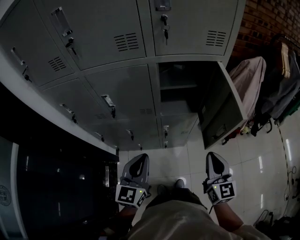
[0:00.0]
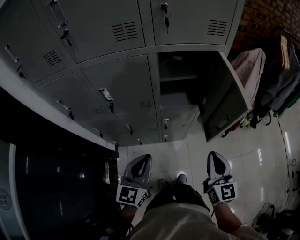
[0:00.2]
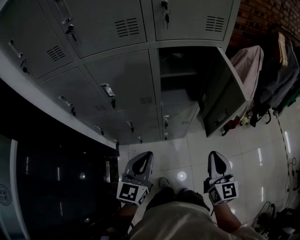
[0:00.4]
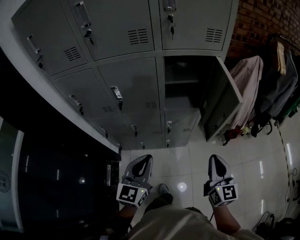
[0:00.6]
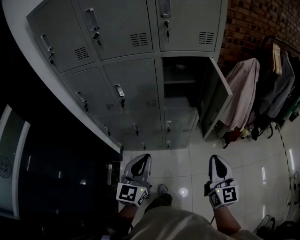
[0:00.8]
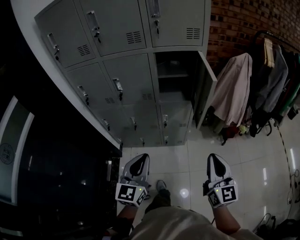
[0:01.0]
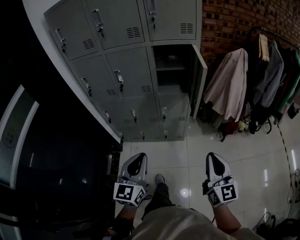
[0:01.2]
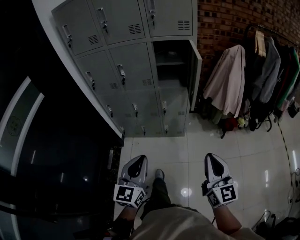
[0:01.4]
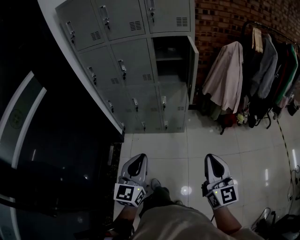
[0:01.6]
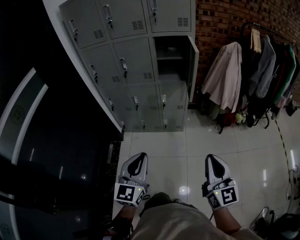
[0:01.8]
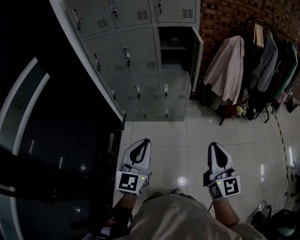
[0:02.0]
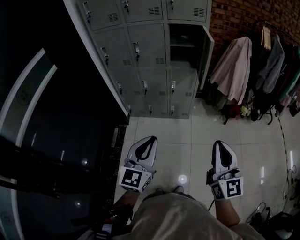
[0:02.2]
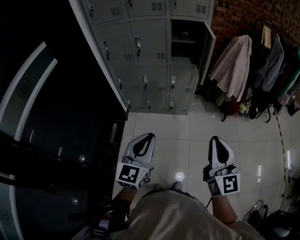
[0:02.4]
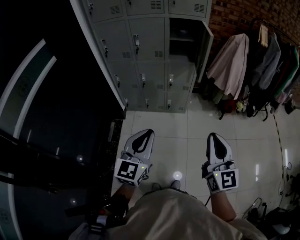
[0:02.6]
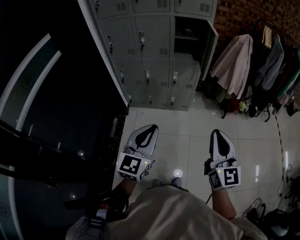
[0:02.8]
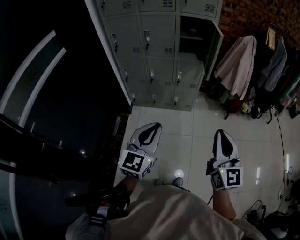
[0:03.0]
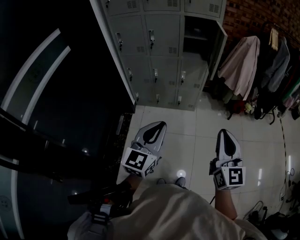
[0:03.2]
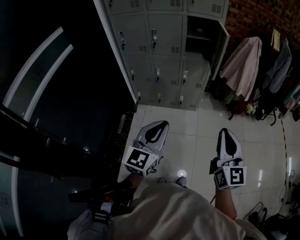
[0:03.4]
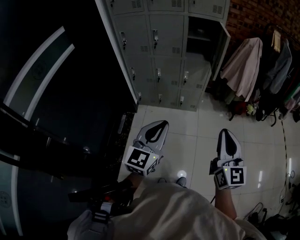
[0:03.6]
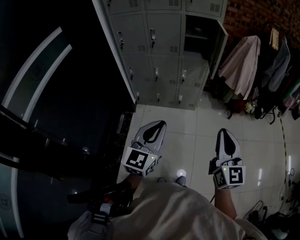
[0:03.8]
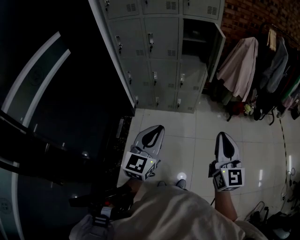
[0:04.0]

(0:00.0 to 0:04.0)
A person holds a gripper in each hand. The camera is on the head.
0:00.0 - 0:01.4: Both grippers are carried backward, roughly 40 cm.
0:01.4 - 0:02.6: The left gripper travels backward by approximately 10 cm, while the right gripper travels backward, to the left and upward by roughly 15 cm.
0:02.6 - 0:04.0: There are only small adjustments of the grippers.

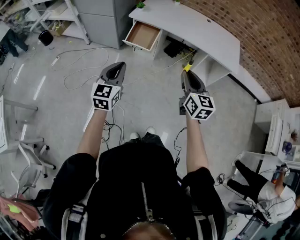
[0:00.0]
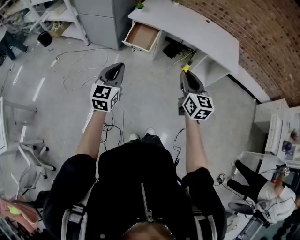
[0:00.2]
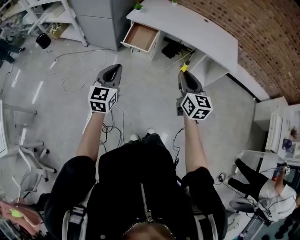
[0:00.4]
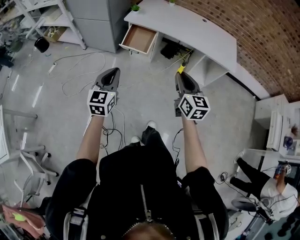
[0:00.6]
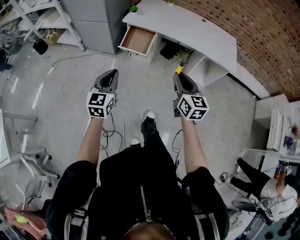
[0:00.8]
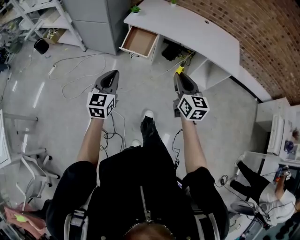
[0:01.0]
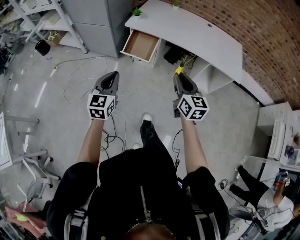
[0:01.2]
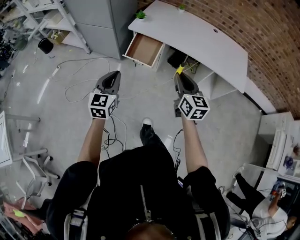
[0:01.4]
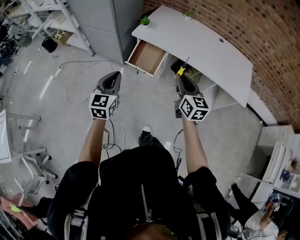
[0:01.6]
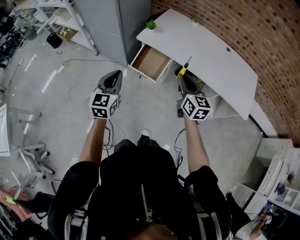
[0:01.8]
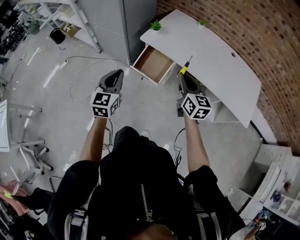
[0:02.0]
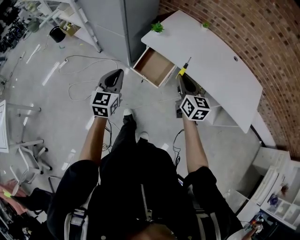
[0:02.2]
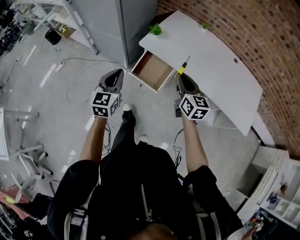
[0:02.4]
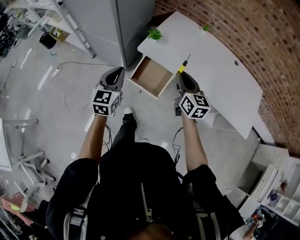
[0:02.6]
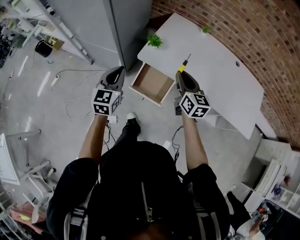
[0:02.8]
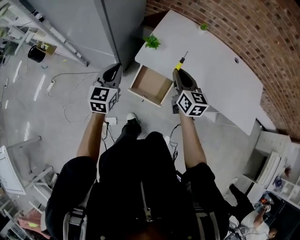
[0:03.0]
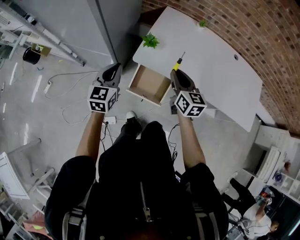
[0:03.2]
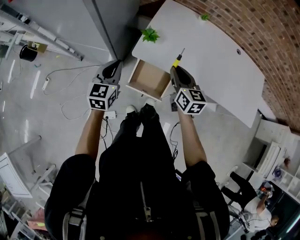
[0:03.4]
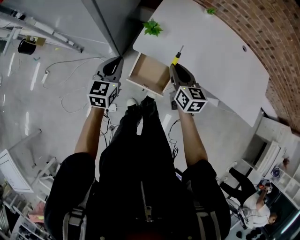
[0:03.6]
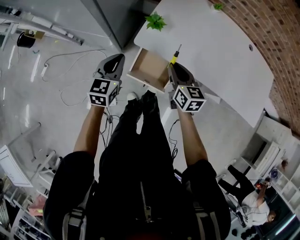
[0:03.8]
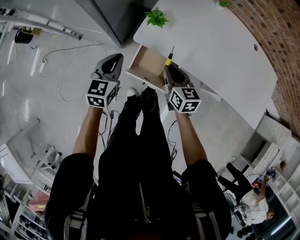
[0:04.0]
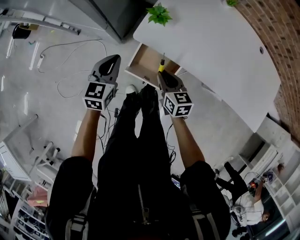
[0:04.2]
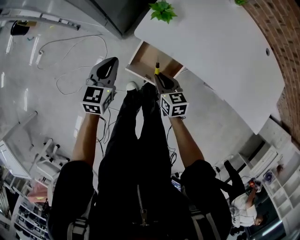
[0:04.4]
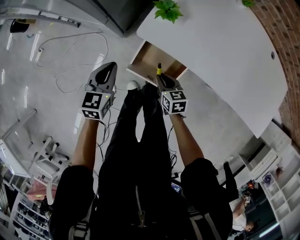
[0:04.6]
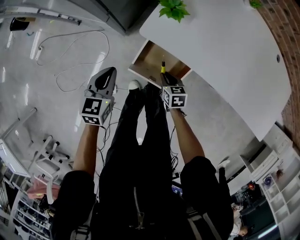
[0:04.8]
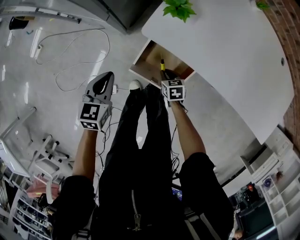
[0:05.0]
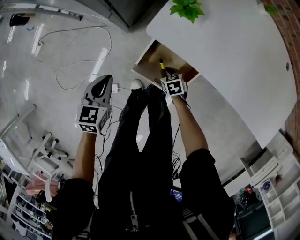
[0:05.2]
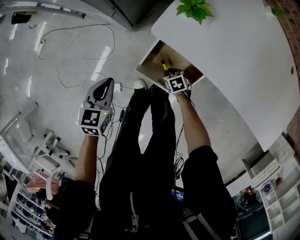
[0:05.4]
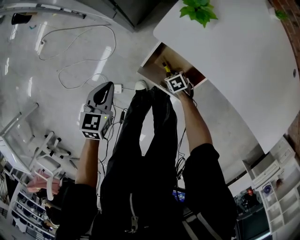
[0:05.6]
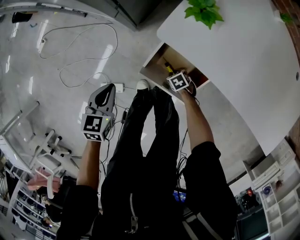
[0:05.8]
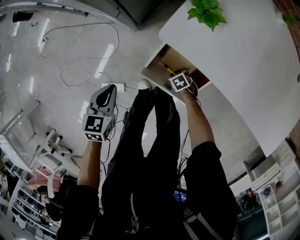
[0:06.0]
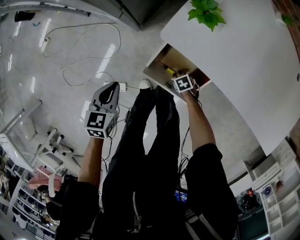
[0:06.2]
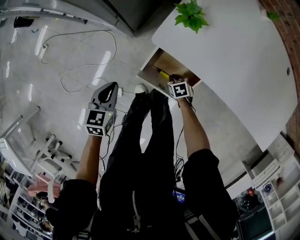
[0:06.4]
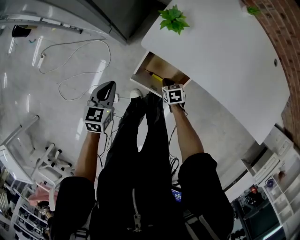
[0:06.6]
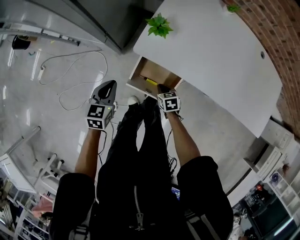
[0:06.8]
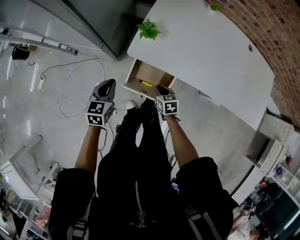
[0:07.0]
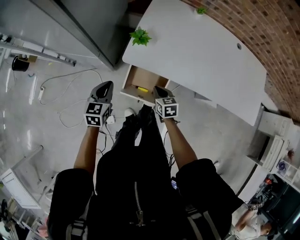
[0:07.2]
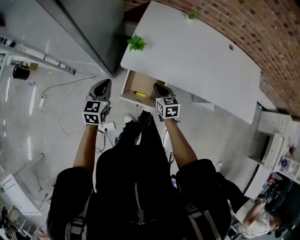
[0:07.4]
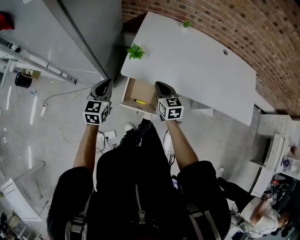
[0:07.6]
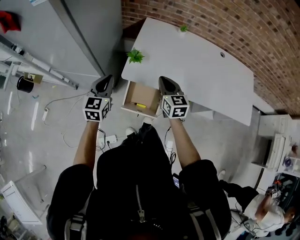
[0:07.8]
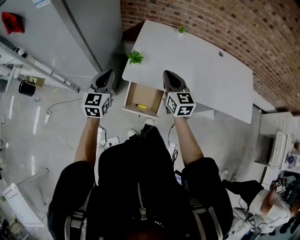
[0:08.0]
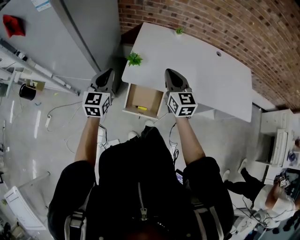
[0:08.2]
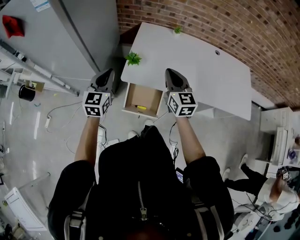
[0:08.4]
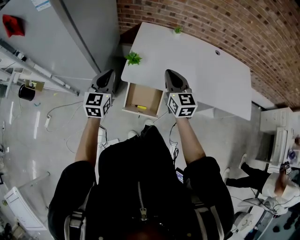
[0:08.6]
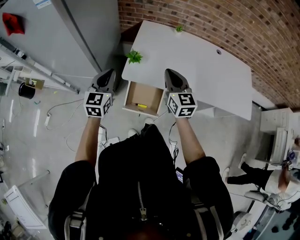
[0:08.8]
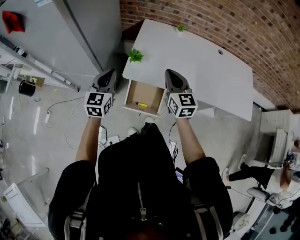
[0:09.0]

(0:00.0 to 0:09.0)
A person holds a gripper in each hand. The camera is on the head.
0:00.0 - 0:01.6: Both grippers move forward, approximately 25 cm.
0:01.6 - 0:03.0: Both grippers travel together forward, roughly 35 cm.
0:03.0 - 0:04.4: The grippers both shift downward by approximately 25 cm. The right gripper swivels approximately 30 degrees.
0:04.4 - 0:06.0: The left gripper travels downward by some 15 cm. The right gripper travels downward by roughly 35 cm, and tips its fingers downward by some 40 degrees.
0:06.0 - 0:07.6: The left gripper travels upward by approximately 25 cm, and turns by approximately 30 degrees. Meanwhile the right gripper shifts some 50 cm upward, points its fingers roughly 50 degrees further upward, and closes its fingers.
0:07.6 - 0:09.0: The left gripper shifts approximately 10 cm upward; the right gripper goes some 15 cm upward.

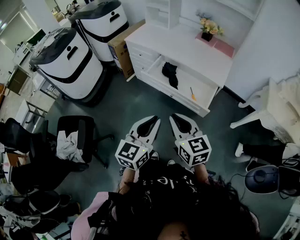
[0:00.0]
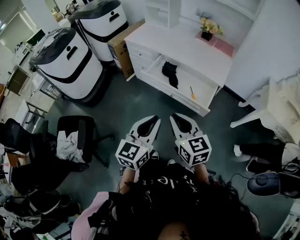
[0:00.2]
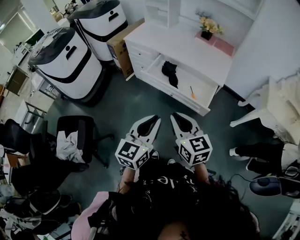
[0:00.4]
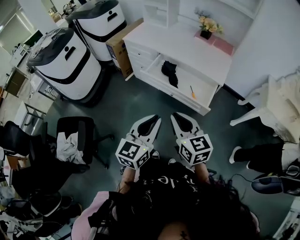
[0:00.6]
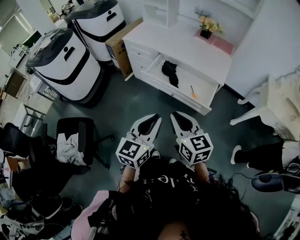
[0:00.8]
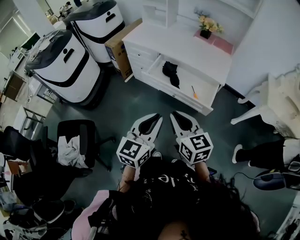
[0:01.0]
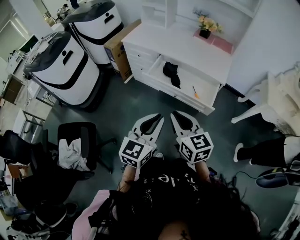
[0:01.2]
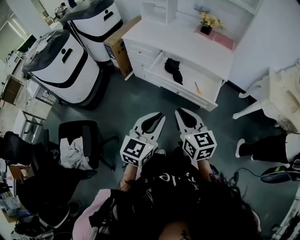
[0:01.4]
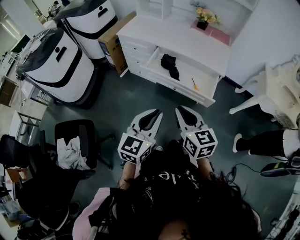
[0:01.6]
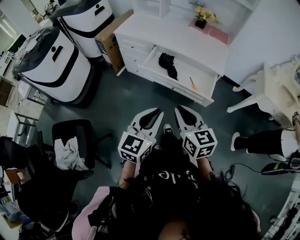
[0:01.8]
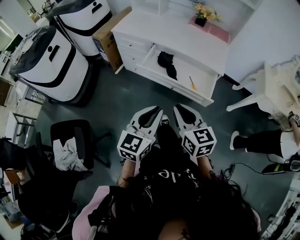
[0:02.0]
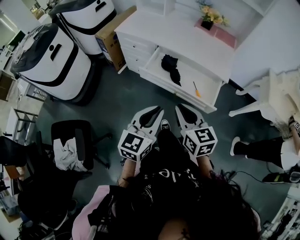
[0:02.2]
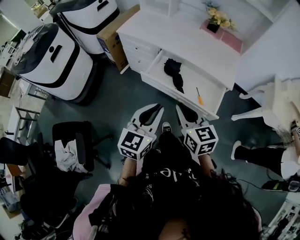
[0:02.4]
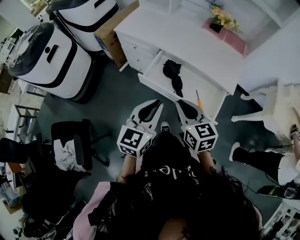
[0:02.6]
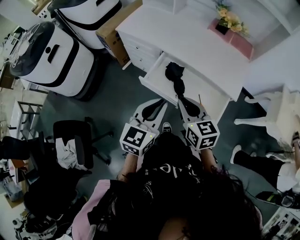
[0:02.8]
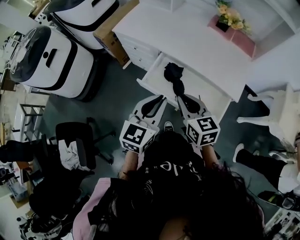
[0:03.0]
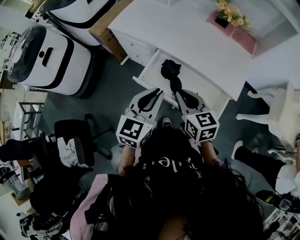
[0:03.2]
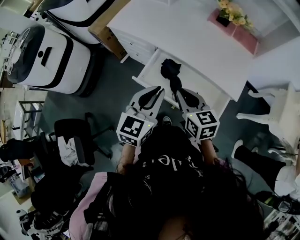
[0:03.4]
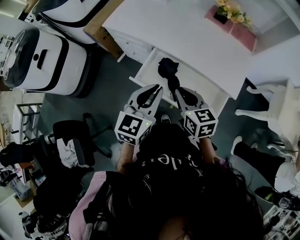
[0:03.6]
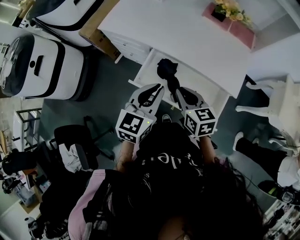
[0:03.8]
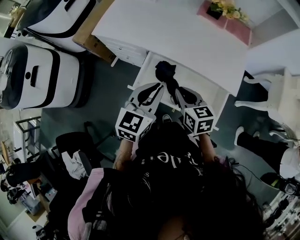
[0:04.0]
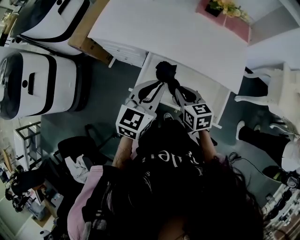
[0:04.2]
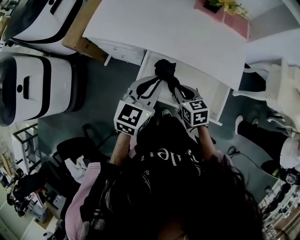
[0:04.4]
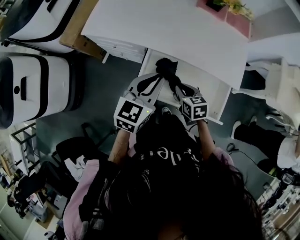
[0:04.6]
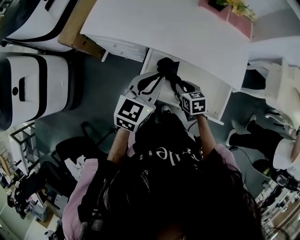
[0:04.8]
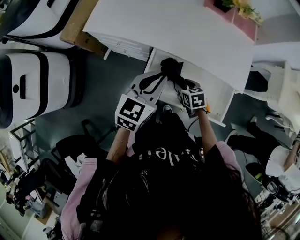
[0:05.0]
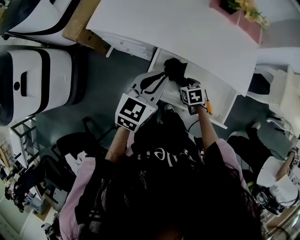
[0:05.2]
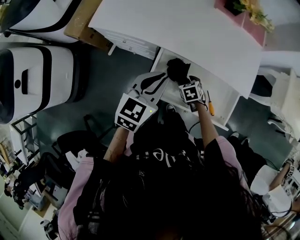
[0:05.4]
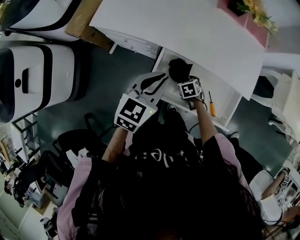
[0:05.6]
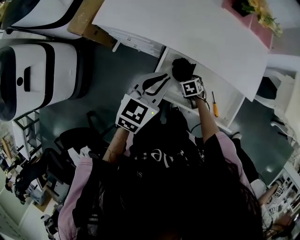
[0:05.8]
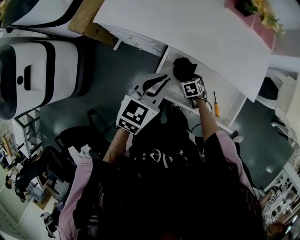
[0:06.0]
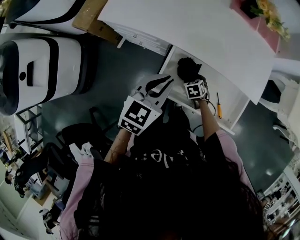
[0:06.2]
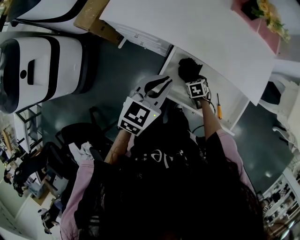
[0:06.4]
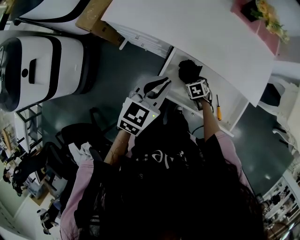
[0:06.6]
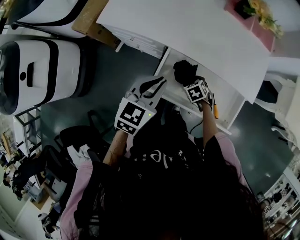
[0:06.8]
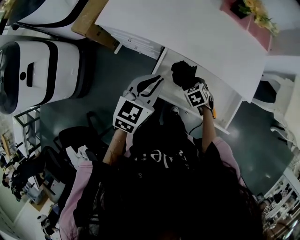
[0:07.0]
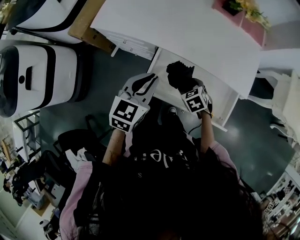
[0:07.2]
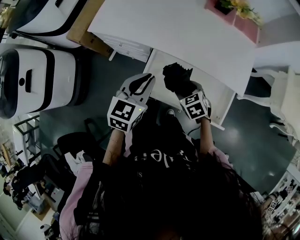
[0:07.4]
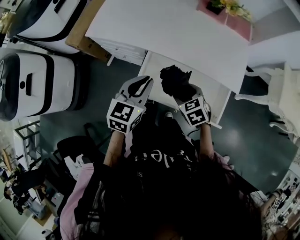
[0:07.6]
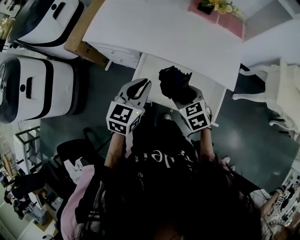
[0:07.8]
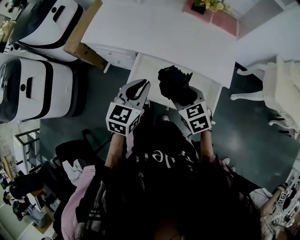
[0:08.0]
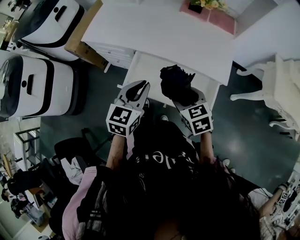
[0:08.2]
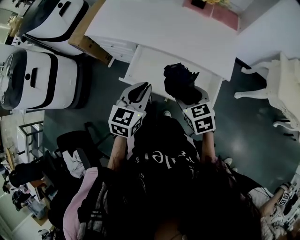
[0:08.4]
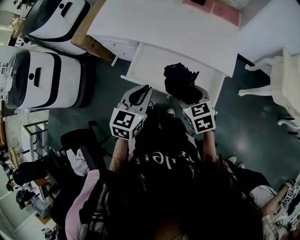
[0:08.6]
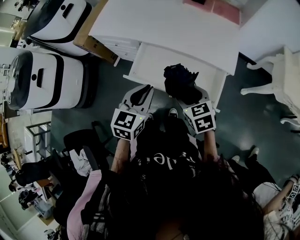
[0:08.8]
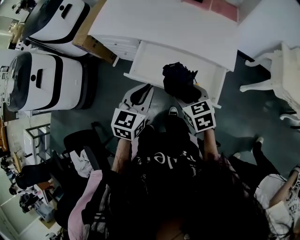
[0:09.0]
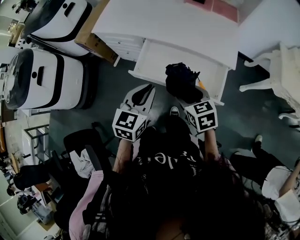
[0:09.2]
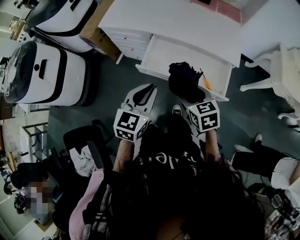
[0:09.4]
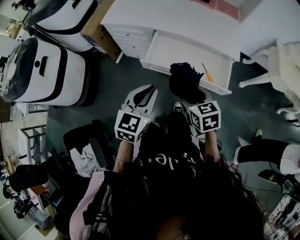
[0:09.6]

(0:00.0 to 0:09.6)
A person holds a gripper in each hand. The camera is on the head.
0:00.0 - 0:01.6: Both grippers move to the left, about 5 cm.
0:01.6 - 0:03.2: Both grippers move forward, about 35 cm.
0:03.2 - 0:04.8: The left gripper is displaced forward by approximately 15 cm, and swivels roughly 20 degrees, while the right gripper travels downward and forward by some 25 cm, and swivels some 30 degrees.
0:04.8 - 0:06.4: The left gripper ends up approximately 5 cm from where it was. The right gripper travels downward by some 15 cm, changes its angle by approximately 20 degrees, and opens its fingers.
0:06.4 - 0:08.0: The right gripper heads upward and backward, covering about 30 cm, and swivels some 20 degrees. Meanwhile the left gripper shifts approximately 15 cm to the right, backward and upward.
0:08.0 - 0:09.6: The two grippers go some 25 cm backward and to the left.

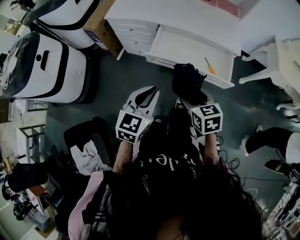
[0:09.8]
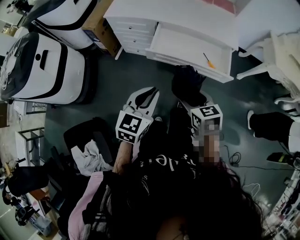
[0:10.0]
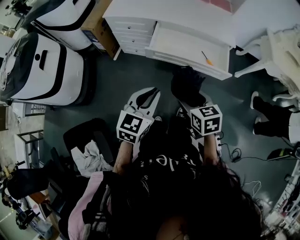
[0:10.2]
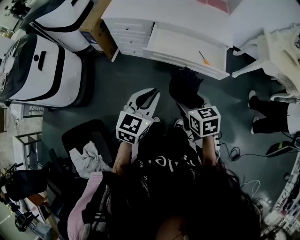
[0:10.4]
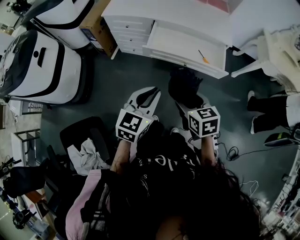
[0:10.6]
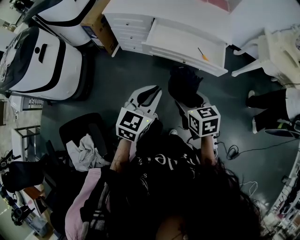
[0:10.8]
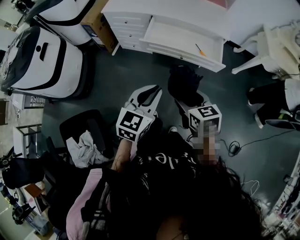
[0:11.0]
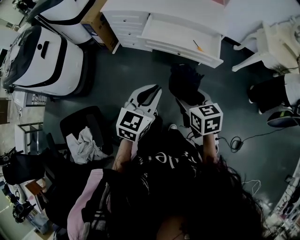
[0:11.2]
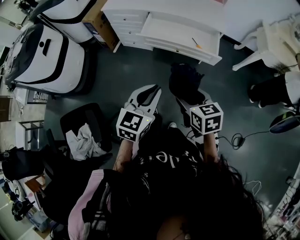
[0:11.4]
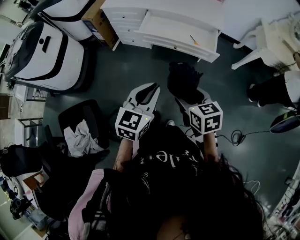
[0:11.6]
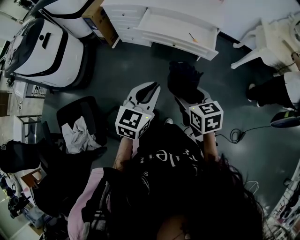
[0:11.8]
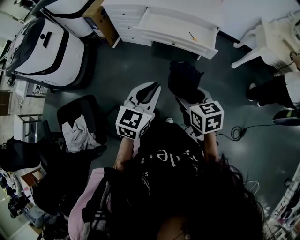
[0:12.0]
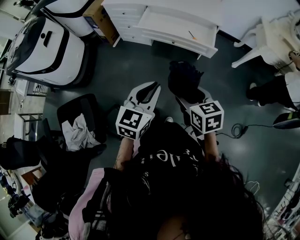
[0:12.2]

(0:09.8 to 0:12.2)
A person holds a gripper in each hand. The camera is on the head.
0:09.8 - 0:11.0: Both grippers move backward, approximately 15 cm.
0:11.0 - 0:12.2: Both grippers move backward and to the right, some 15 cm.
